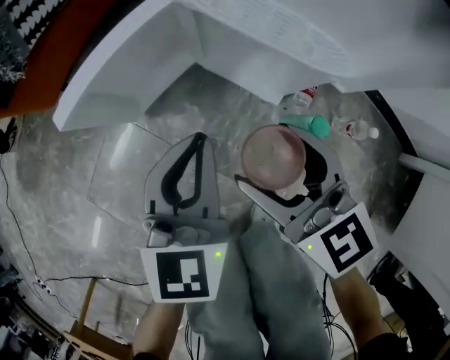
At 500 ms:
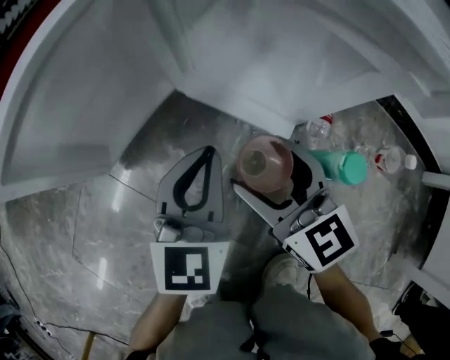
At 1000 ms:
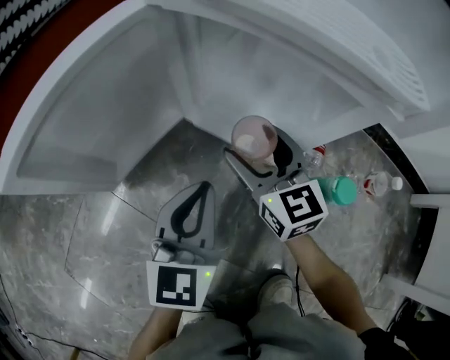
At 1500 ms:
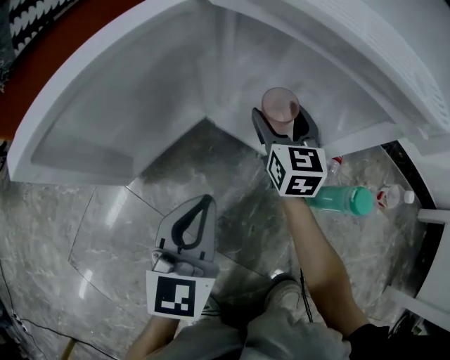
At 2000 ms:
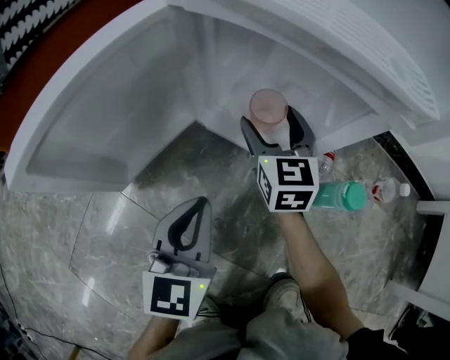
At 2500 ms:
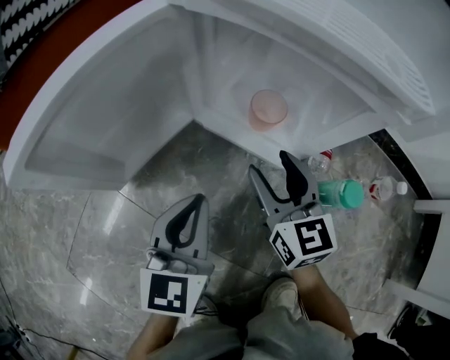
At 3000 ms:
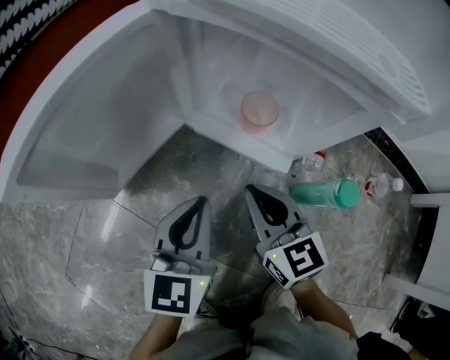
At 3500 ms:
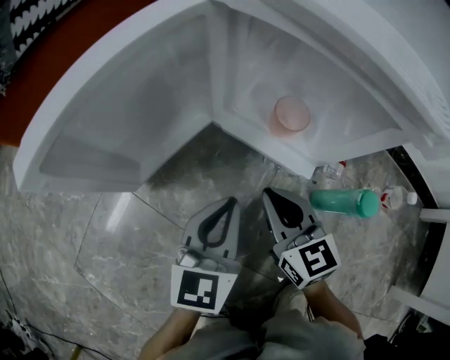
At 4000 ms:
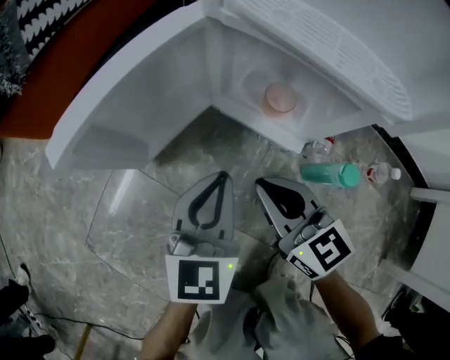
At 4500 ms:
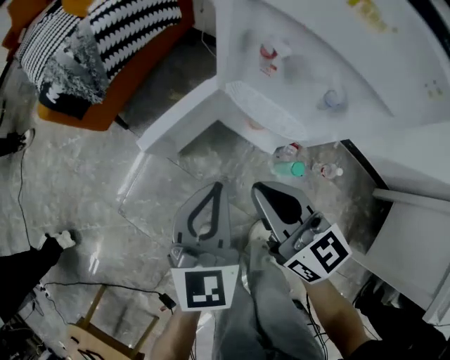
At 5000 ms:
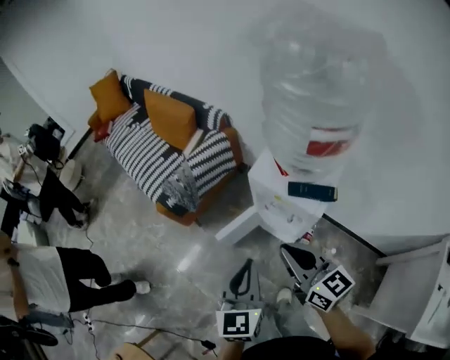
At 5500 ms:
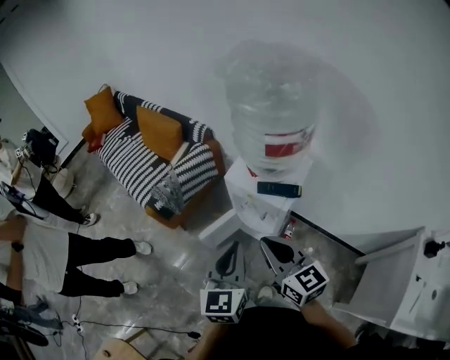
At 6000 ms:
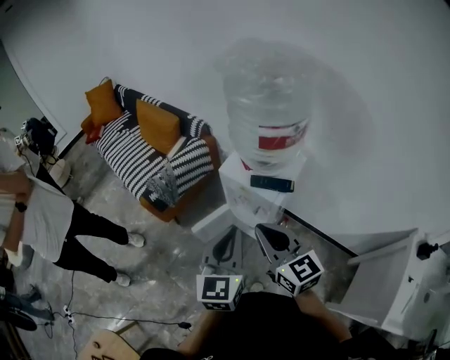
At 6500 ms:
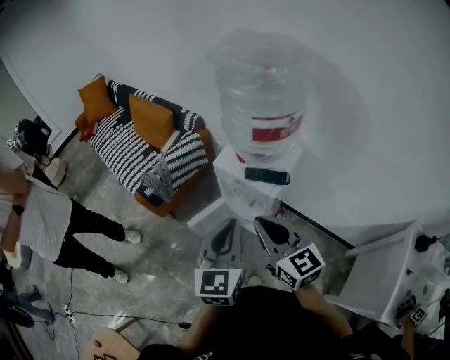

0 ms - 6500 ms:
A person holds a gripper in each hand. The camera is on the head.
0 ms - 2000 ms: The right gripper travels downward and forward by approximately 30 cm, and changes its angle by approximately 30 degrees; the left gripper travels downward by approximately 20 cm.
2000 ms - 4500 ms: The left gripper is displaced upward by about 40 cm. Meanwhile the right gripper heads upward and backward, covering some 50 cm, swivels about 40 degrees, and closes its fingers.
4500 ms - 6500 ms: Both grippers travel together upward, some 50 cm.

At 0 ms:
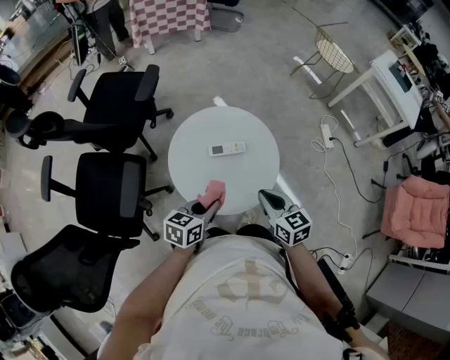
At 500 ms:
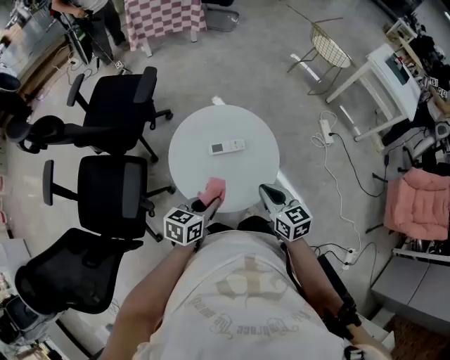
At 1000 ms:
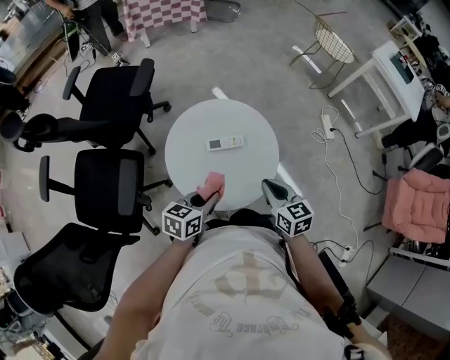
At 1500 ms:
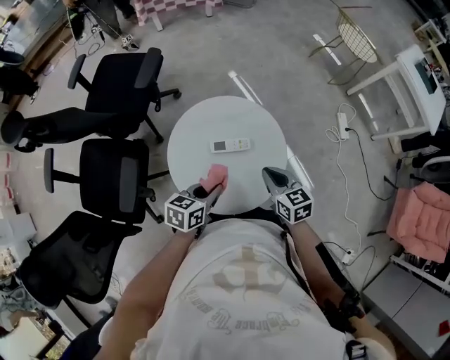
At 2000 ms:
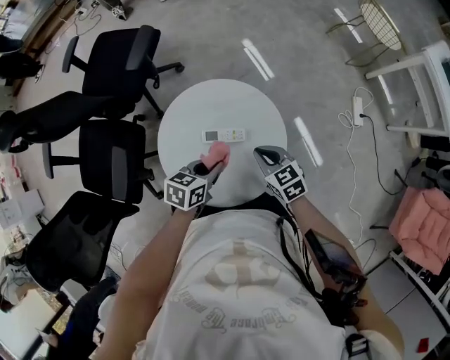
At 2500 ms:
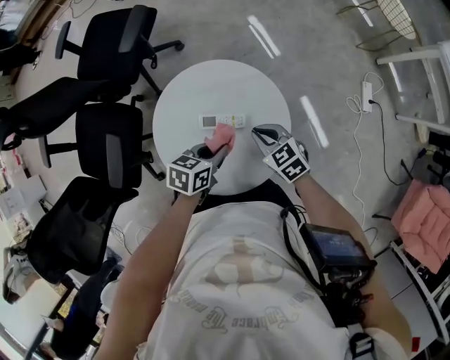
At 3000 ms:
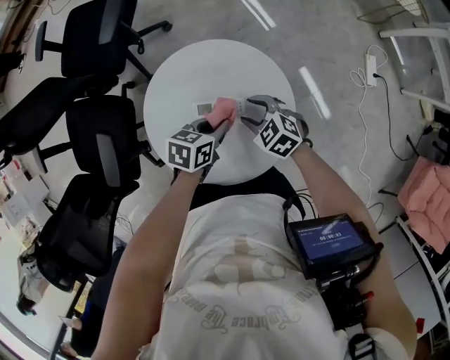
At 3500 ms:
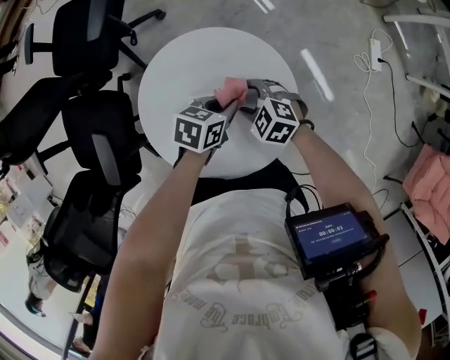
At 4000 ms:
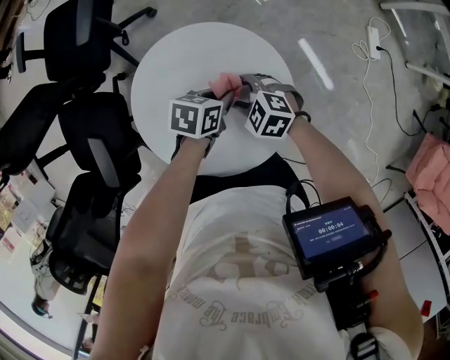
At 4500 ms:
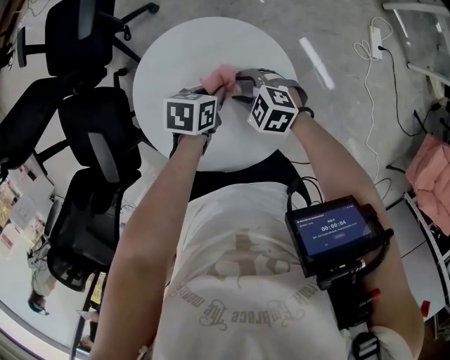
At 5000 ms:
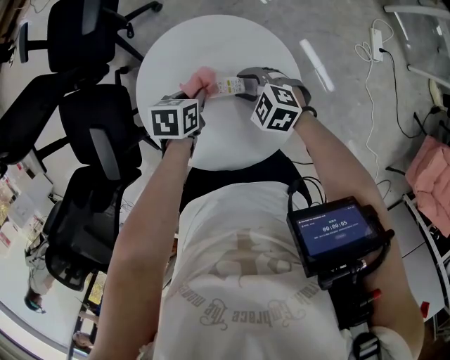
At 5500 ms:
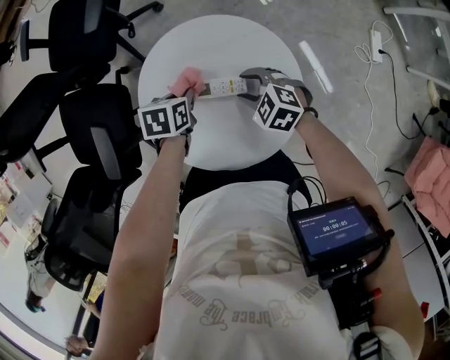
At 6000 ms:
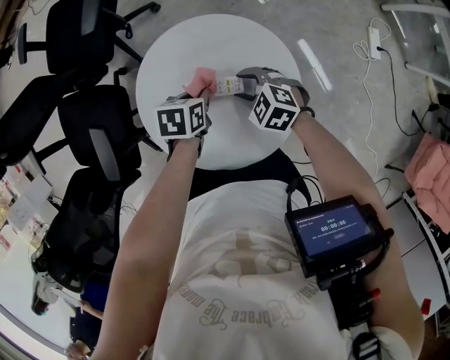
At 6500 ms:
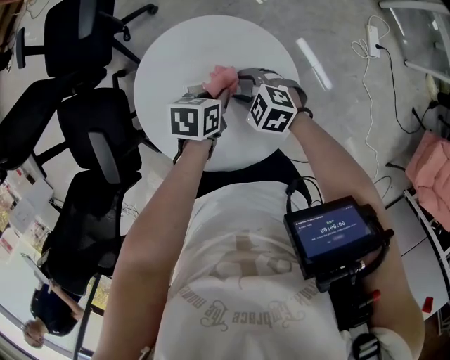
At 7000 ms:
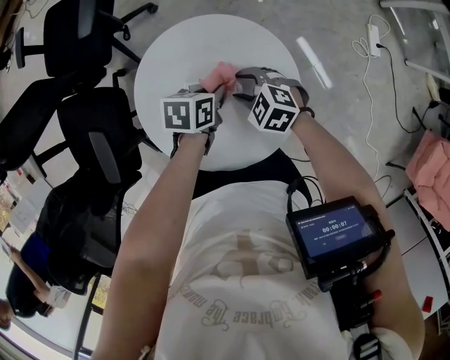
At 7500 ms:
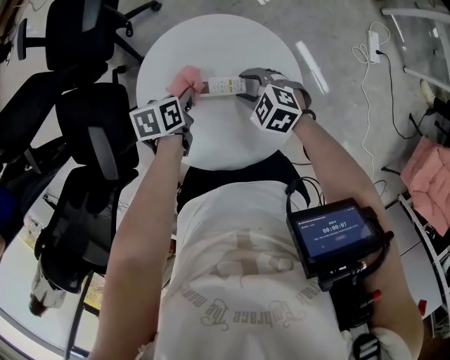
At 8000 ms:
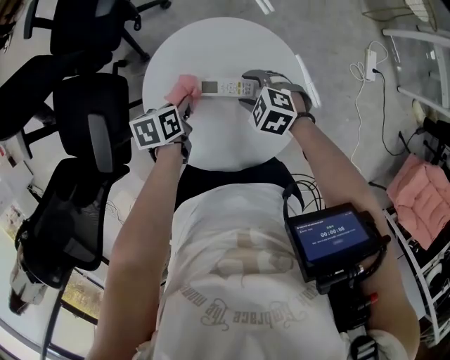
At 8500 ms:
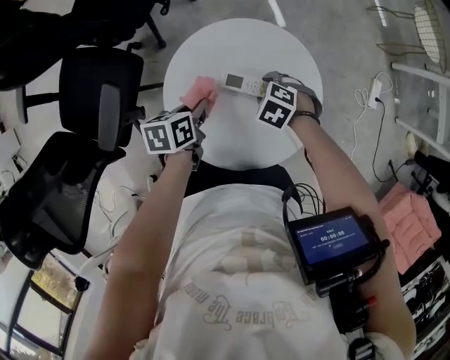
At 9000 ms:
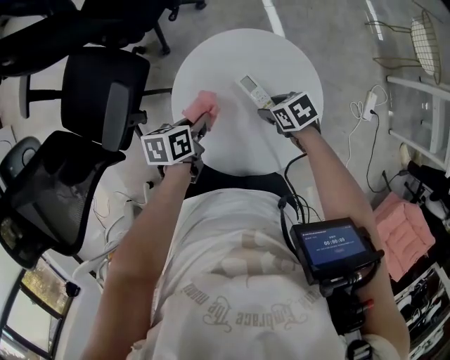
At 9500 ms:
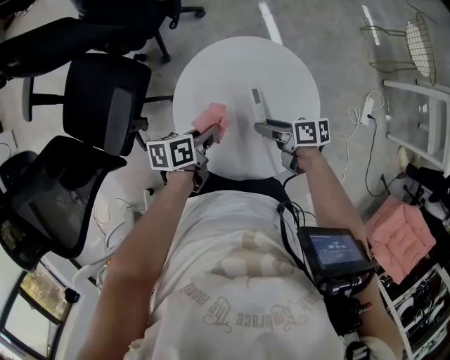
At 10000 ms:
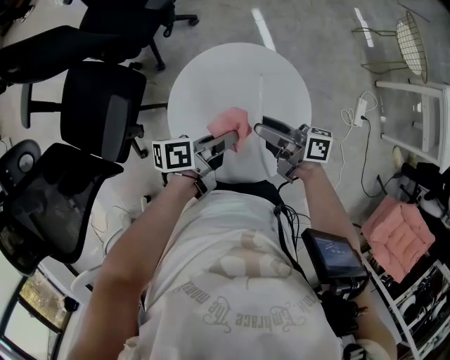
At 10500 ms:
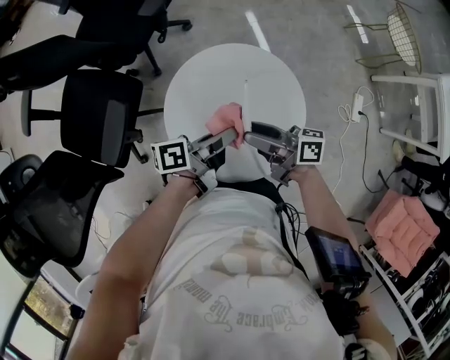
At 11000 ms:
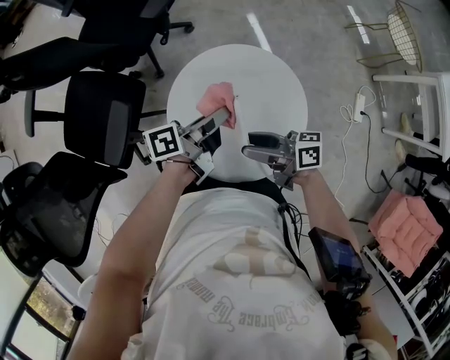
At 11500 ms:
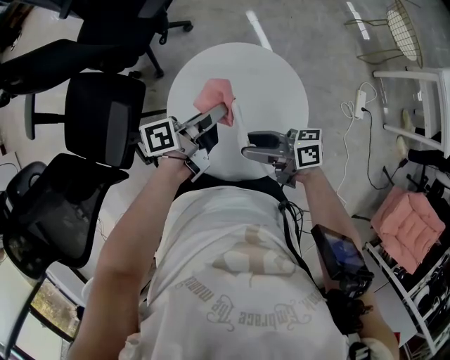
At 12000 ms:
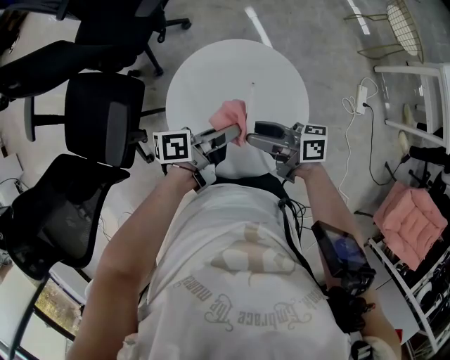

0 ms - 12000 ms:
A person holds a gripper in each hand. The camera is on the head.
0 ms - 2000 ms: The right gripper ends up roughly 20 cm from where it was, and rotates about 20 degrees.
2000 ms - 4000 ms: The right gripper goes about 10 cm downward, changes its angle by about 40 degrees, and opens.
8000 ms - 10000 ms: The right gripper is displaced upward by approximately 15 cm, and angles its fingers upward, by approximately 60 degrees.

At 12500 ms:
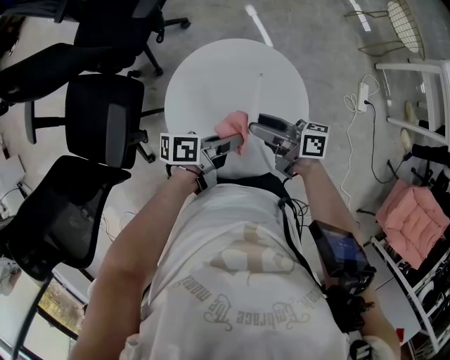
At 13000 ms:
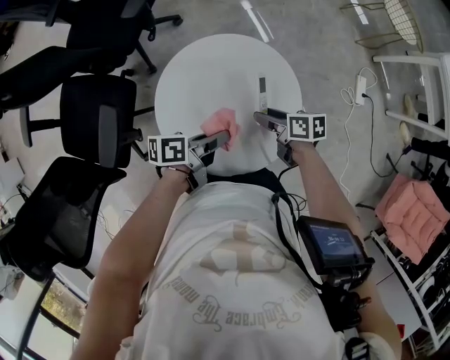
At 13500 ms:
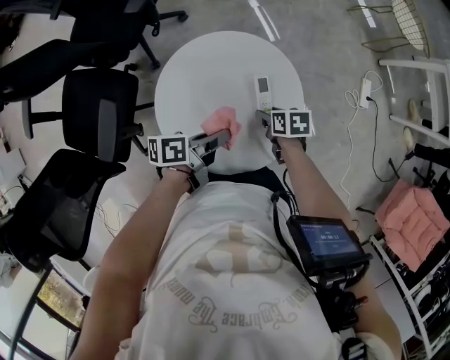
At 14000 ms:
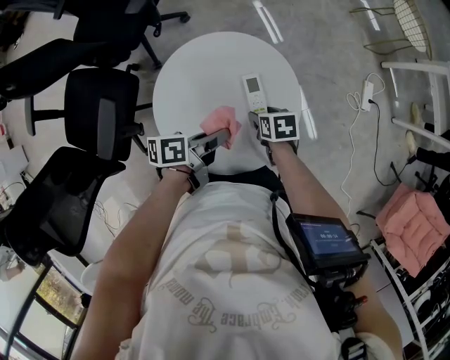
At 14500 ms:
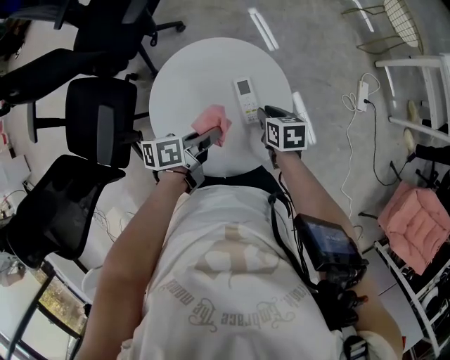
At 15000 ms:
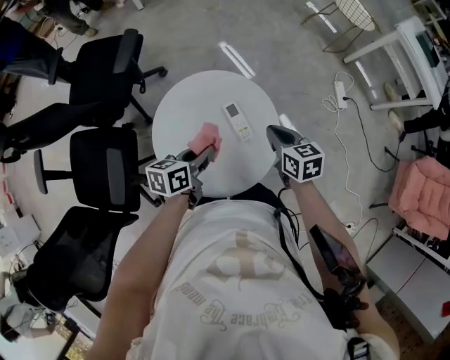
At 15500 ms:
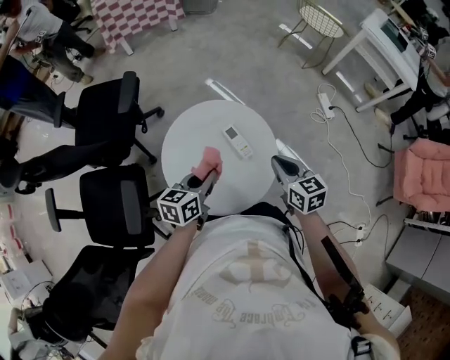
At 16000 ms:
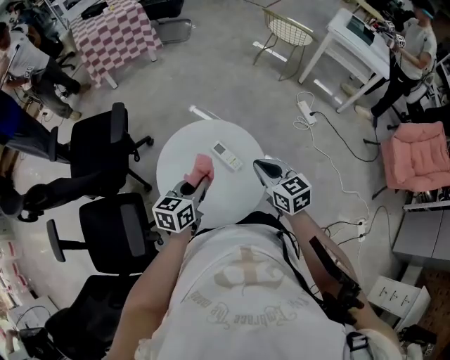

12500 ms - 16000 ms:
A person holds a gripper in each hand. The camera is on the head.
12500 ms - 14500 ms: The right gripper ends up some 15 cm from where it was, tips its fingers downward by about 50 degrees, and closes its fingers.
14500 ms - 16000 ms: The right gripper heads upward, covering approximately 20 cm, and changes its angle by about 40 degrees.

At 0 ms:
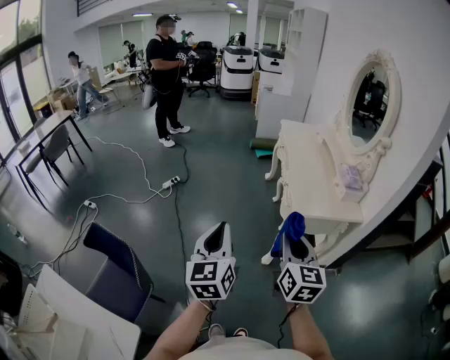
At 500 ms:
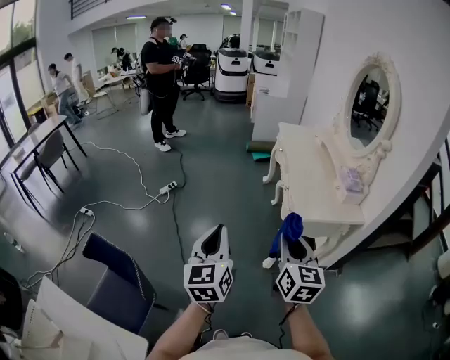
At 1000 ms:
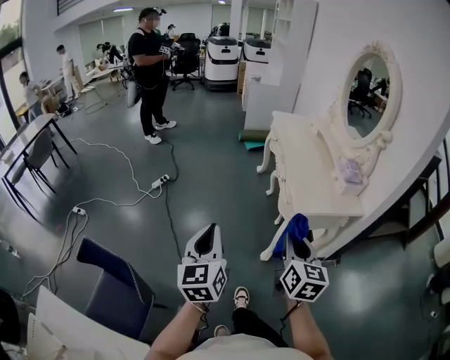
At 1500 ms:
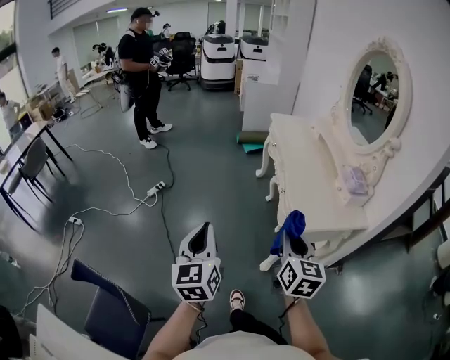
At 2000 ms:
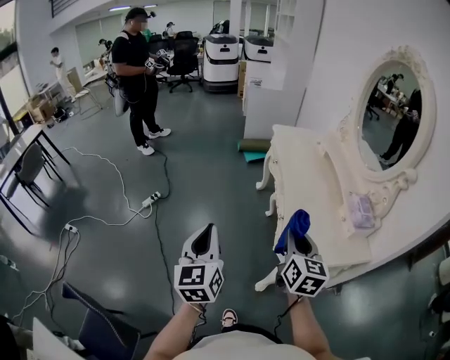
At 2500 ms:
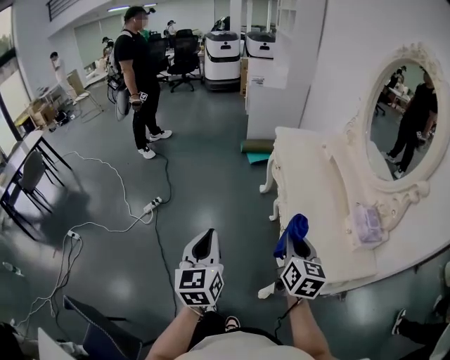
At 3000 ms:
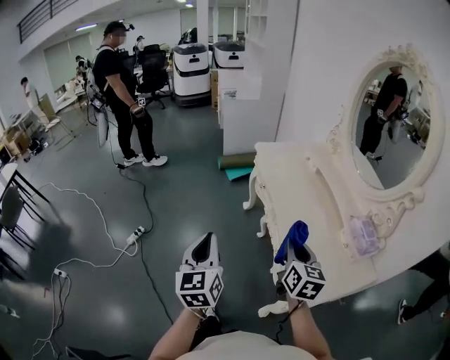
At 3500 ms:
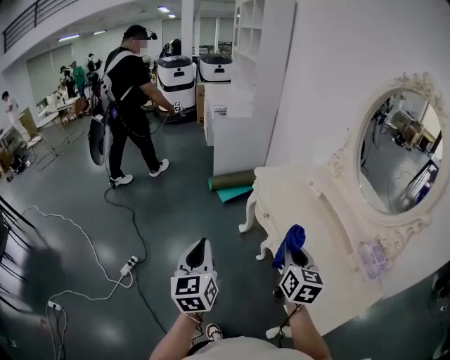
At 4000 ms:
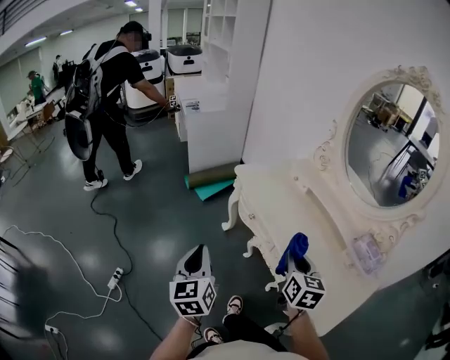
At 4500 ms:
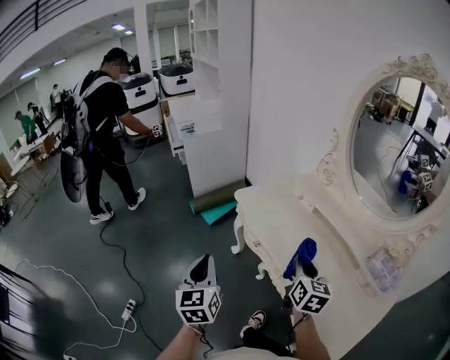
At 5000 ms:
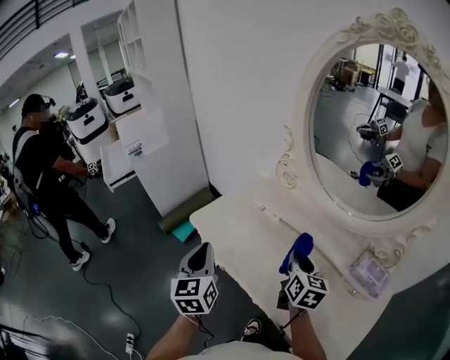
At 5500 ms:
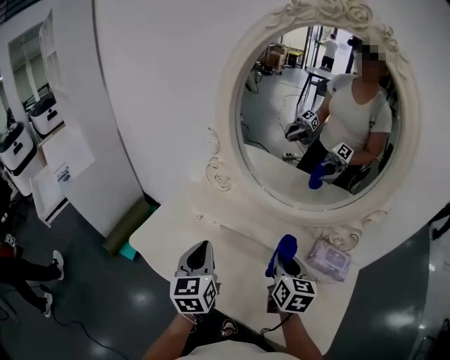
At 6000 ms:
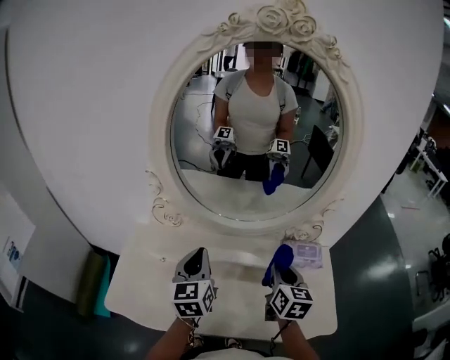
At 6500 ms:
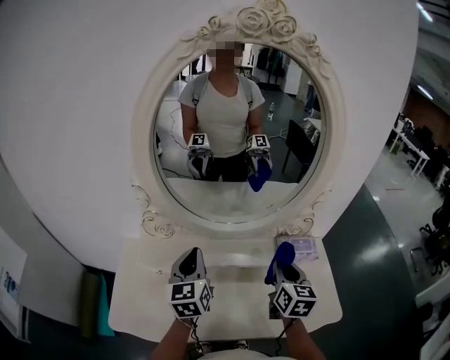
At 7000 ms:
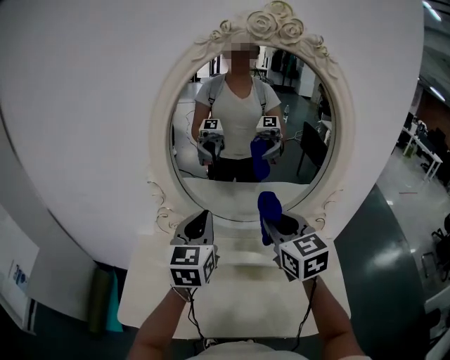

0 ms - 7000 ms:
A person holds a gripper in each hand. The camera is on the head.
0 ms - 2000 ms: The two grippers go roughly 30 cm forward.
2000 ms - 3500 ms: The grippers both shift forward by roughly 30 cm.
3500 ms - 5000 ms: The left gripper shifts by some 40 cm, and rotates some 30 degrees. The right gripper shifts by roughly 30 cm, and swivels approximately 30 degrees.
5000 ms - 7000 ms: The left gripper ends up some 35 cm from where it was, and changes its angle by approximately 60 degrees; the right gripper moves upward, roughly 20 cm, and turns by some 30 degrees.
